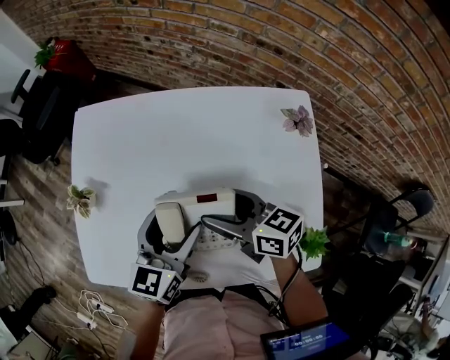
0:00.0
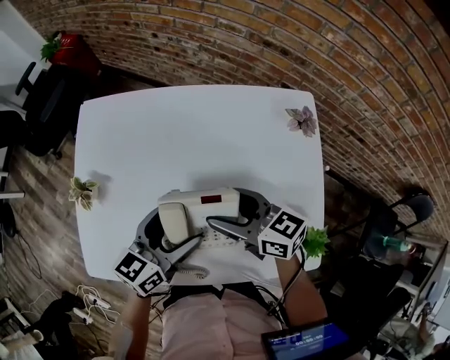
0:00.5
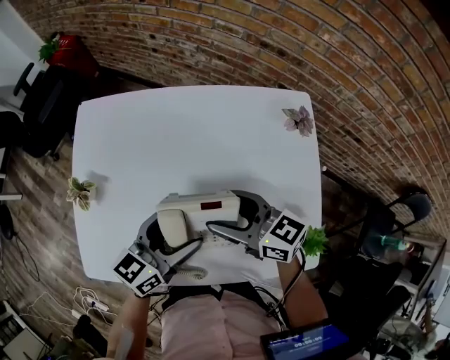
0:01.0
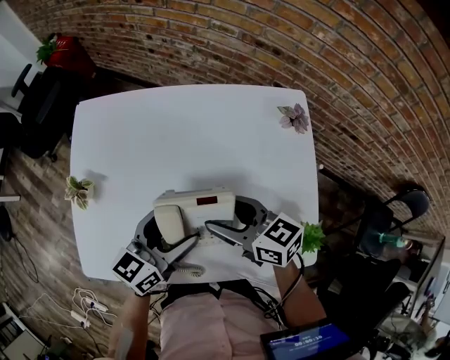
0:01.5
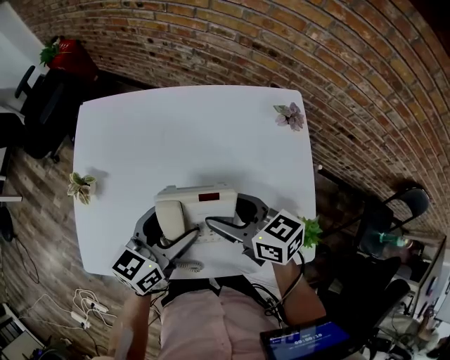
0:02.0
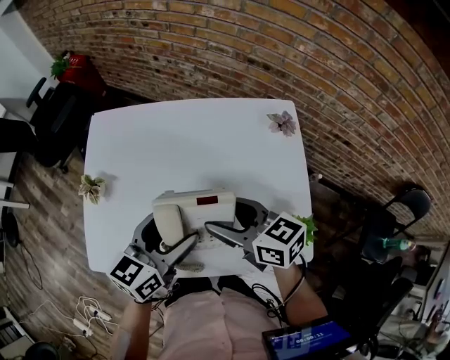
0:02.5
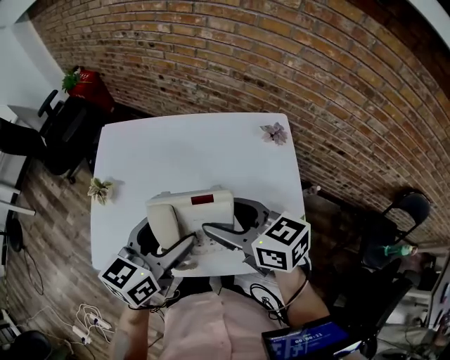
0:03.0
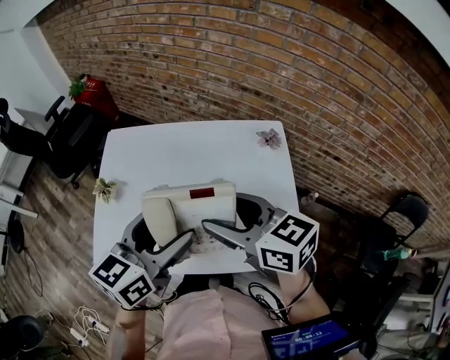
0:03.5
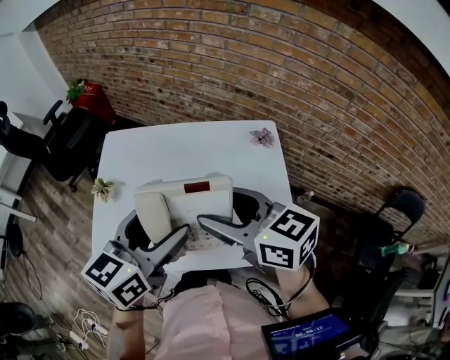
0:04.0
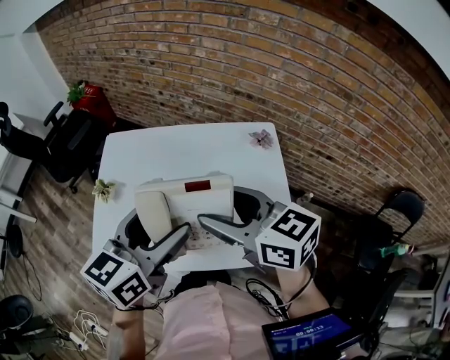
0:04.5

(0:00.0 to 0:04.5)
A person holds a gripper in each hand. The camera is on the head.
0:02.0 - 0:04.5: Both grippers travel together upward, roughly 20 cm.

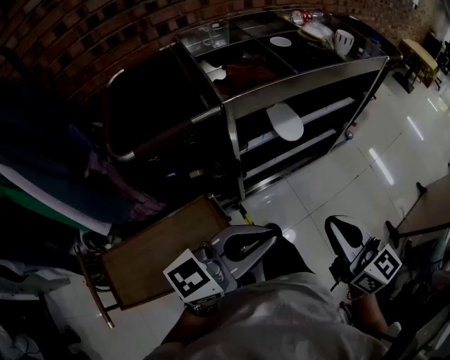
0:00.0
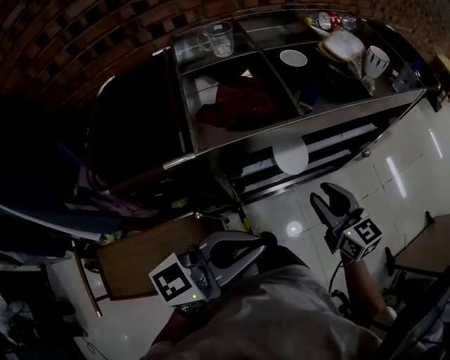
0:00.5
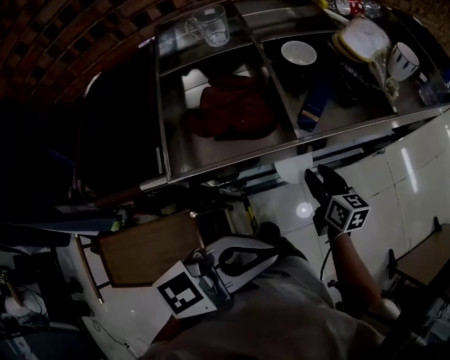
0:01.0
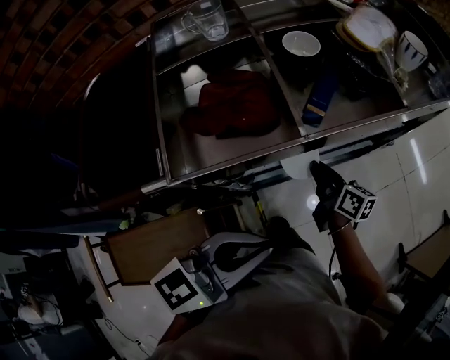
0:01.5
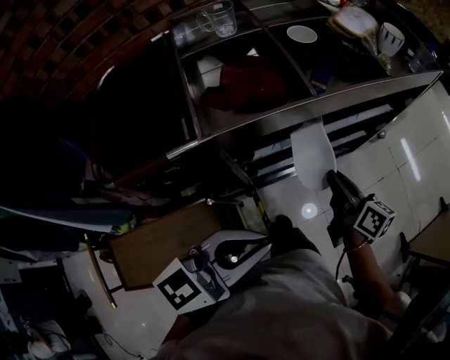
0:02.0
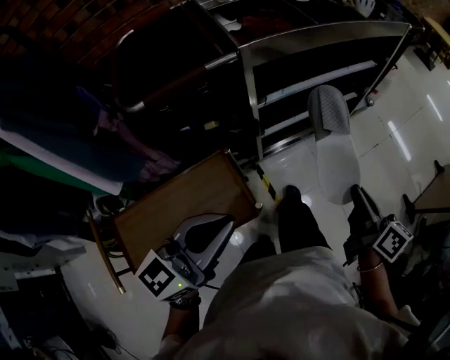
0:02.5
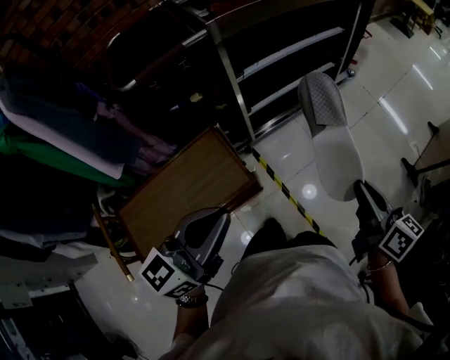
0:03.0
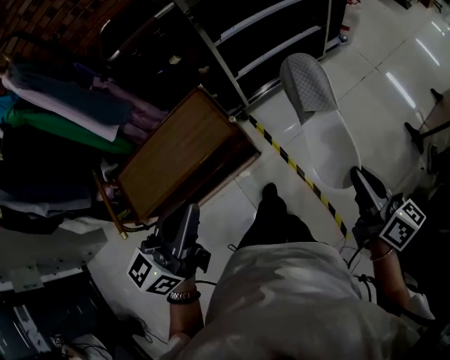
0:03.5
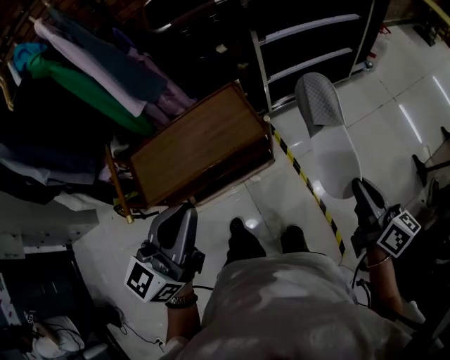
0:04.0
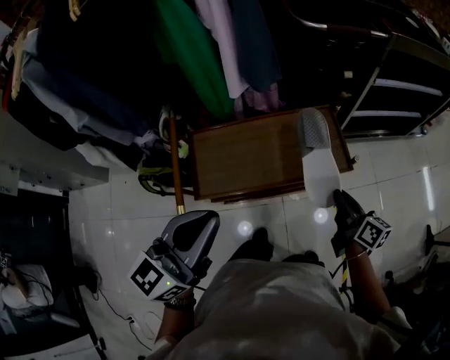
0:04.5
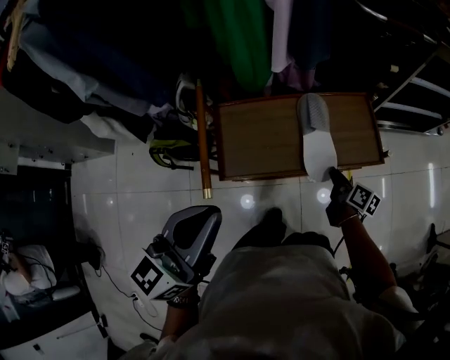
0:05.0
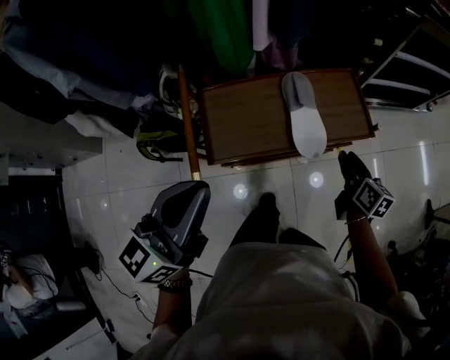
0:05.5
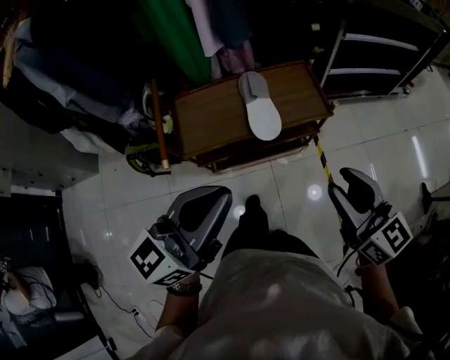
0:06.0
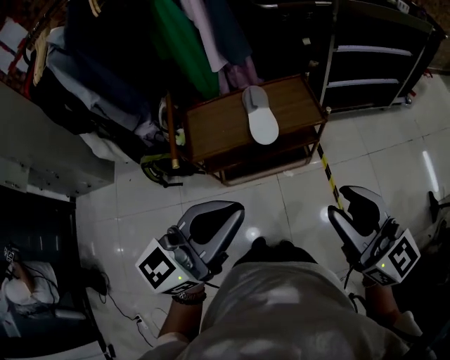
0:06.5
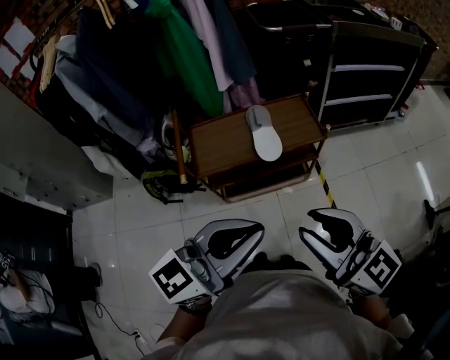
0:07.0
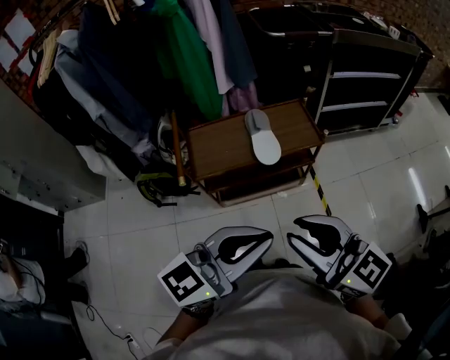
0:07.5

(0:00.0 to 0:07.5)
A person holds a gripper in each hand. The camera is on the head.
0:00.0 - 0:02.0: The left gripper is displaced forward by roughly 15 cm; the right gripper moves forward and downward, roughly 30 cm, turns by roughly 30 degrees, and opens, then closes once more.
0:02.0 - 0:04.0: The pair of grippers is taken backward, some 50 cm. The left gripper swivels about 20 degrees.
0:04.0 - 0:05.5: The right gripper heads to the left, downward and forward, covering roughly 40 cm, and opens, while the left gripper is displaced to the left by about 35 cm.
0:05.5 - 0:07.5: The left gripper is displaced to the right and backward by roughly 30 cm, and changes its angle by about 30 degrees, while the right gripper travels upward and backward by some 50 cm, and turns by approximately 50 degrees.

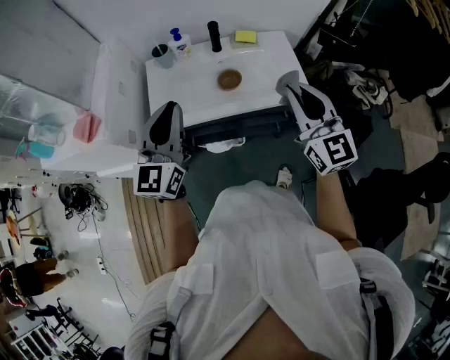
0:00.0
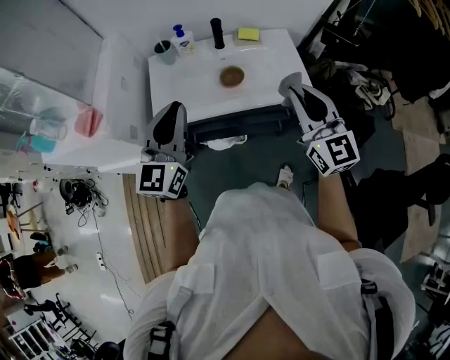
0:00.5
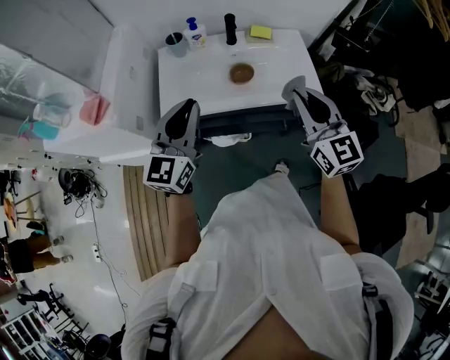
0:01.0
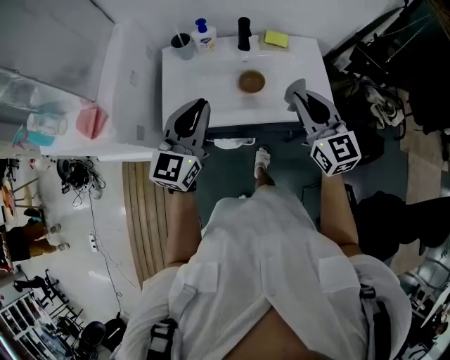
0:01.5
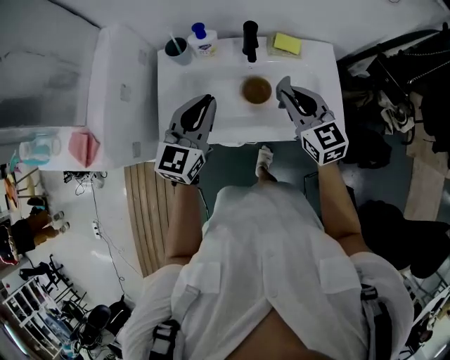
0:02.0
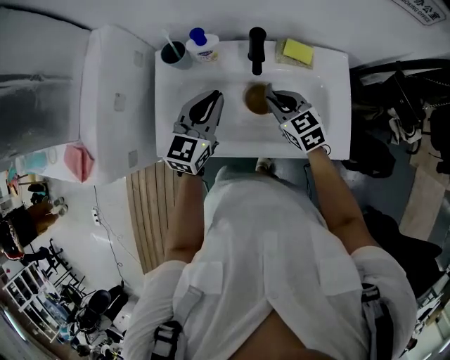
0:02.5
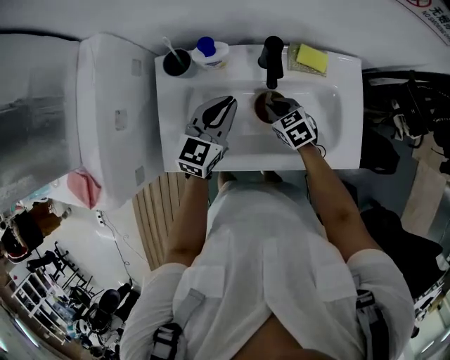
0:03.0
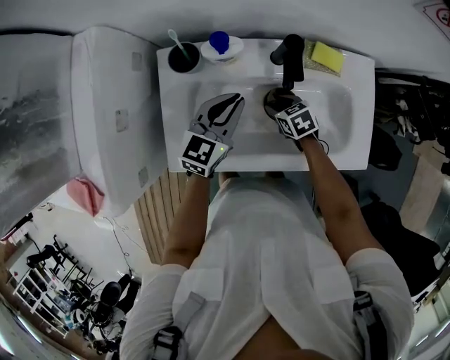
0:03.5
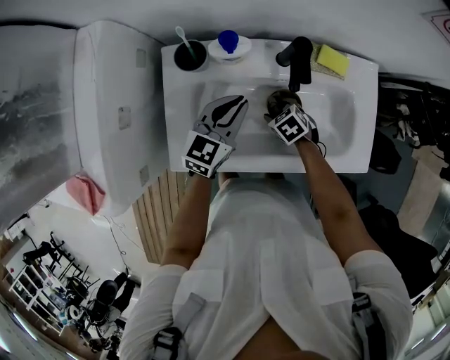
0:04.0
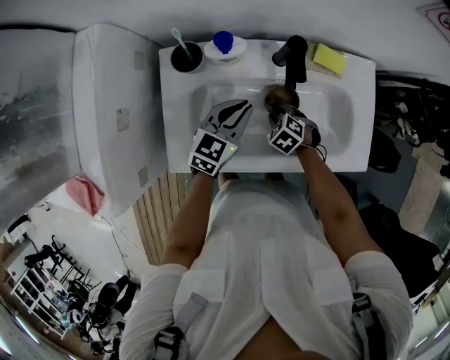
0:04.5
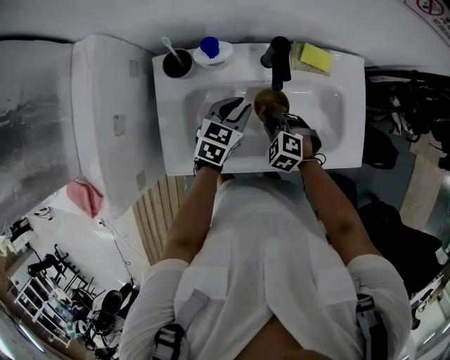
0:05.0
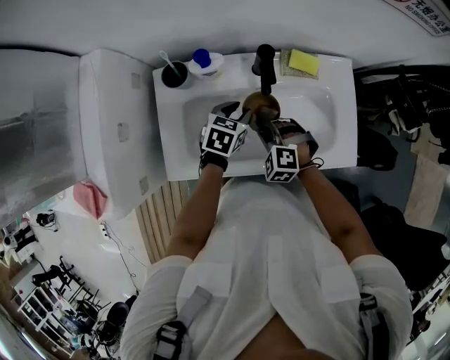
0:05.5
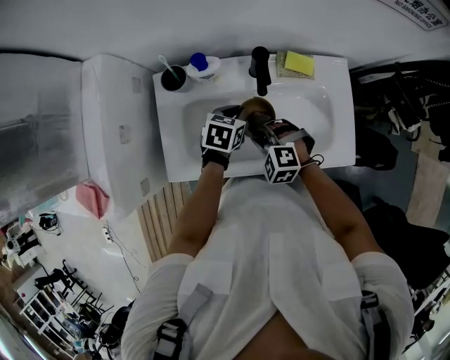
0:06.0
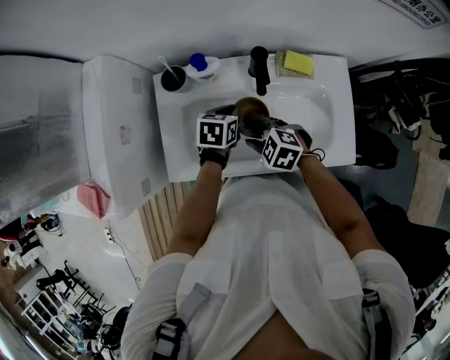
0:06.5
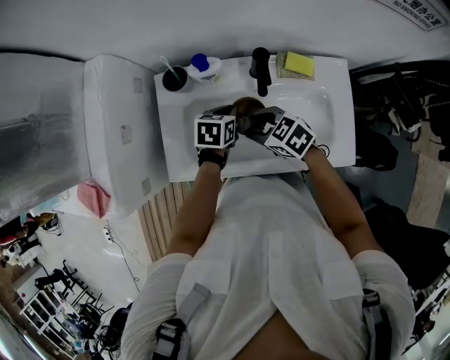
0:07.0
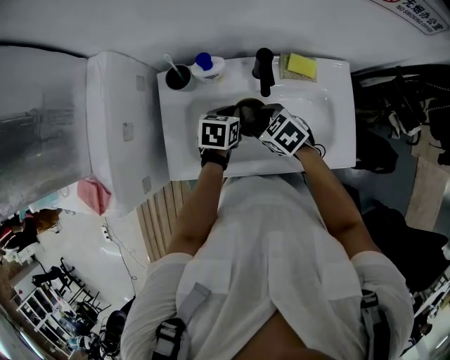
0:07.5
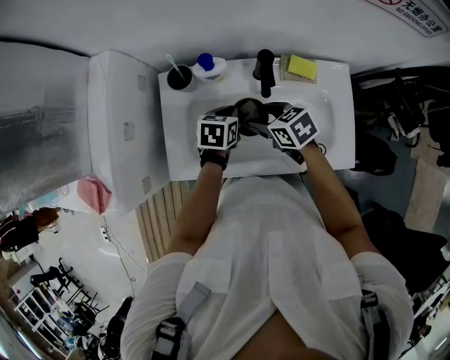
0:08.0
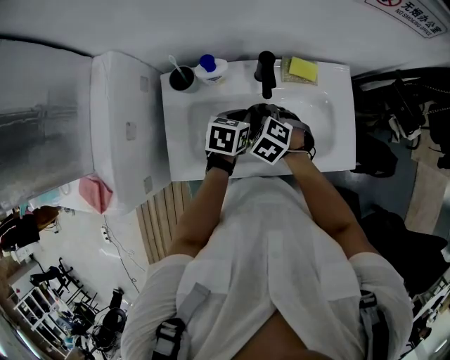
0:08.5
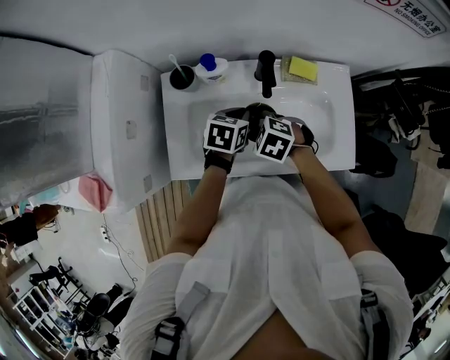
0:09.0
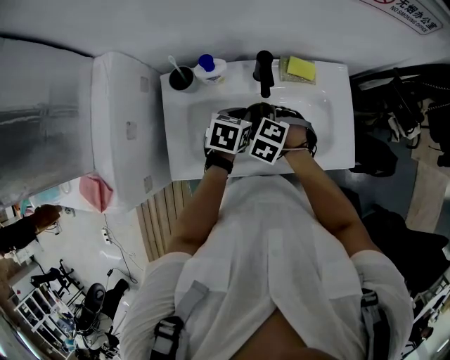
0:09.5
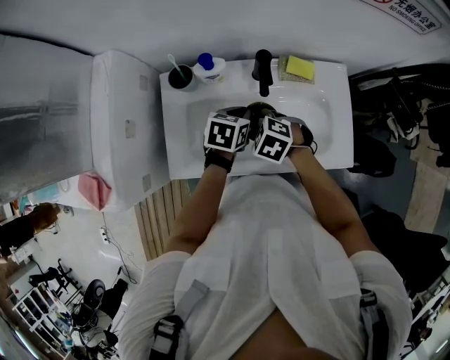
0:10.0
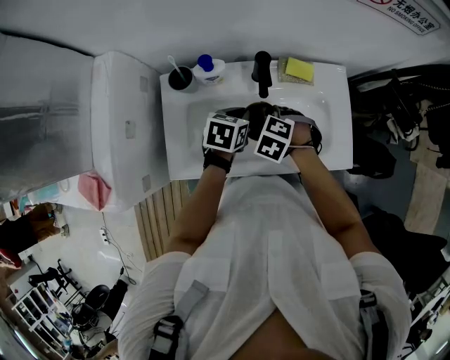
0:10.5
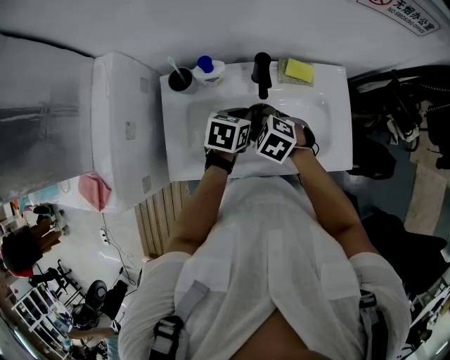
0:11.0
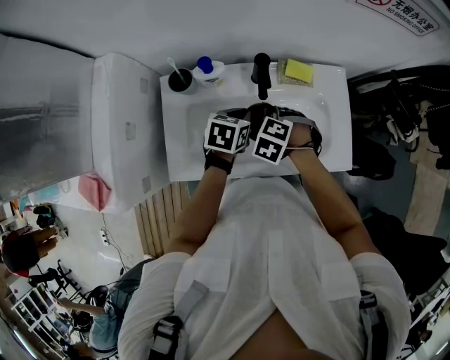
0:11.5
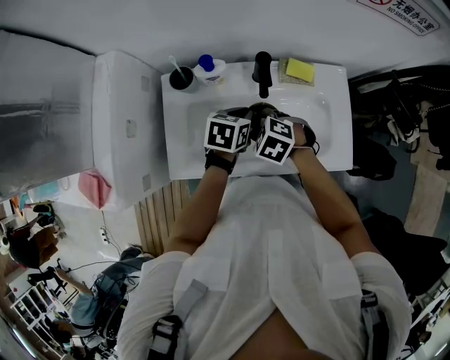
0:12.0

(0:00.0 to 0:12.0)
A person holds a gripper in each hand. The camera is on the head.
0:00.0 - 0:02.0: The two grippers go about 25 cm forward and downward. The right gripper rotates some 30 degrees.
0:02.0 - 0:04.0: The left gripper shifts about 20 cm downward and forward. The right gripper goes approximately 30 cm downward, points its fingers approximately 50 degrees further downward, and opens up.
0:04.0 - 0:06.0: The right gripper goes approximately 15 cm upward, rotates around the line of its fingers by roughly 50 degrees, counterclockwise from behind, and closes up; the left gripper heads downward and to the right, covering roughly 10 cm, swivels roughly 30 degrees, and opens, then closes again.
0:06.0 - 0:08.0: The right gripper heads forward, covering approximately 5 cm, rolls clockwise, seen from behind, by approximately 60 degrees, and opens its fingers.
0:08.0 - 0:10.0: The left gripper moves approximately 5 cm, while the right gripper rotates roughly 40 degrees, and closes its fingers.

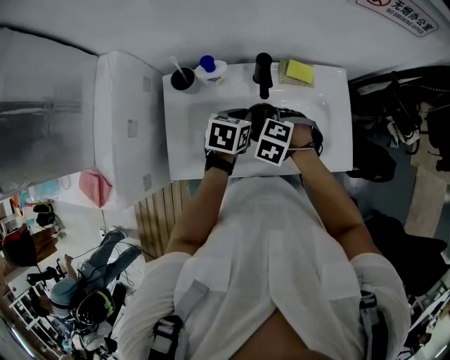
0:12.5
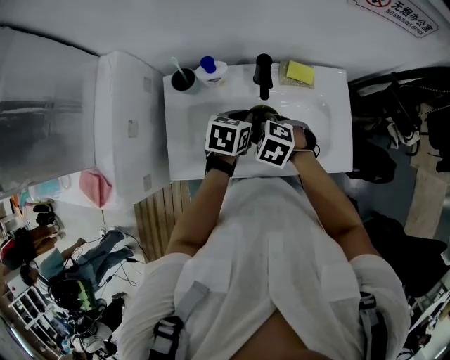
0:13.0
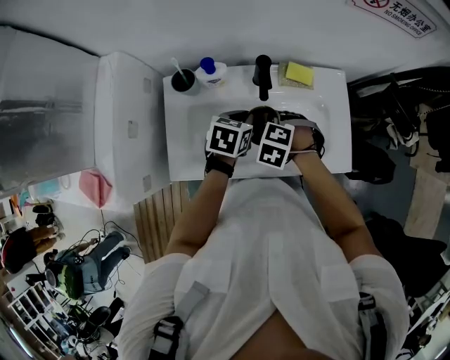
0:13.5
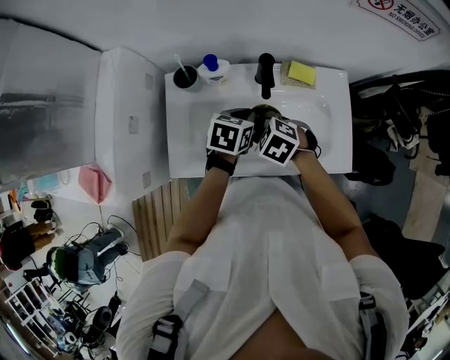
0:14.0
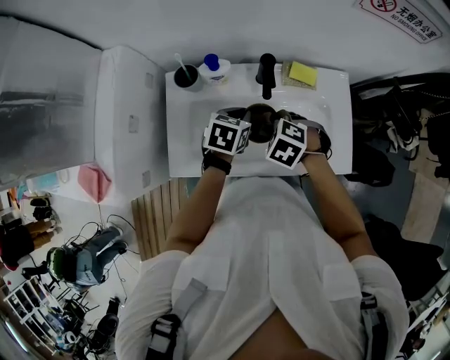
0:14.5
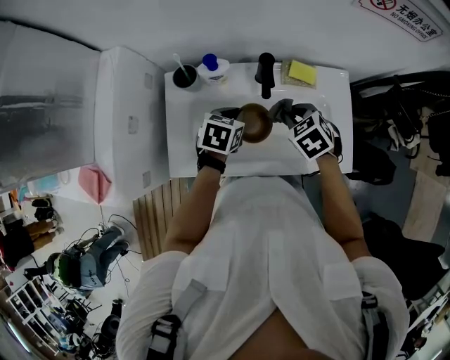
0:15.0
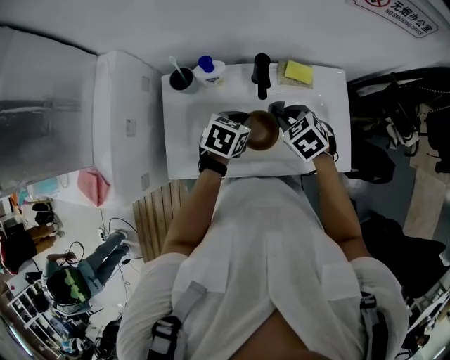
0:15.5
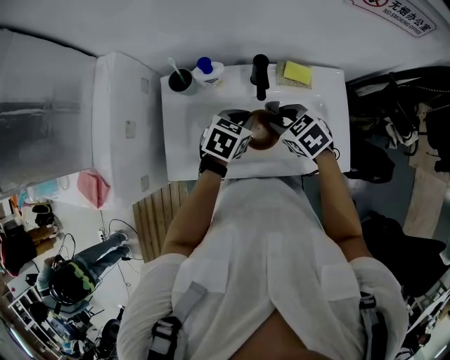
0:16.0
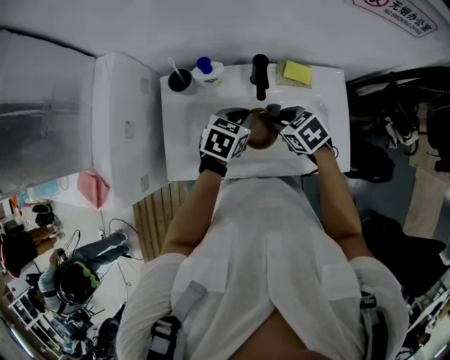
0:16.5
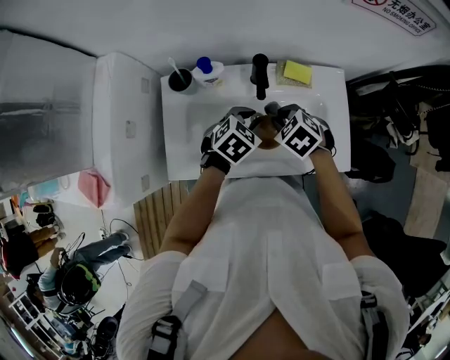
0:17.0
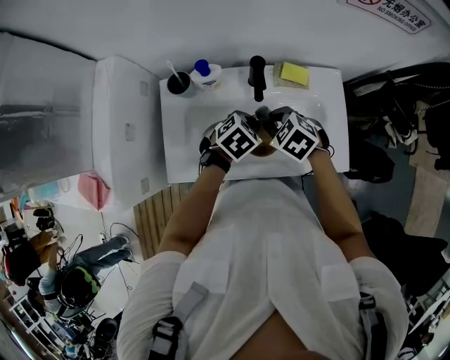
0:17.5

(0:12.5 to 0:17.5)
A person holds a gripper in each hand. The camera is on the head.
0:12.5 - 0:15.0: The right gripper moves approximately 10 cm, and swivels roughly 30 degrees.
0:15.0 - 0:17.5: The right gripper ends up about 5 cm from where it was. The left gripper is displaced to the right by about 5 cm, changes its angle by roughly 30 degrees, and opens and closes again.
